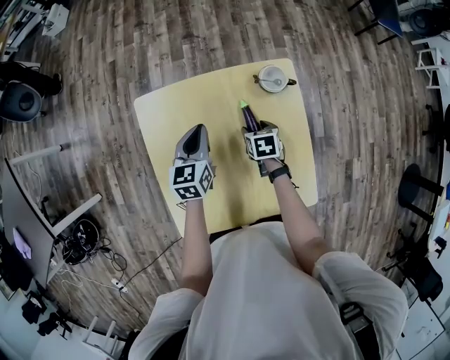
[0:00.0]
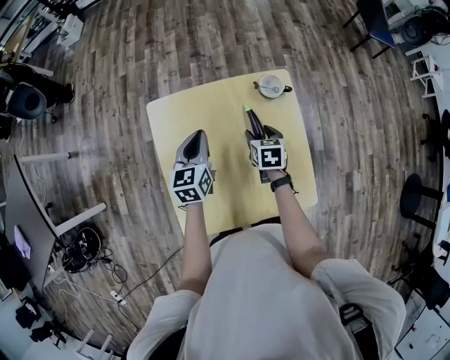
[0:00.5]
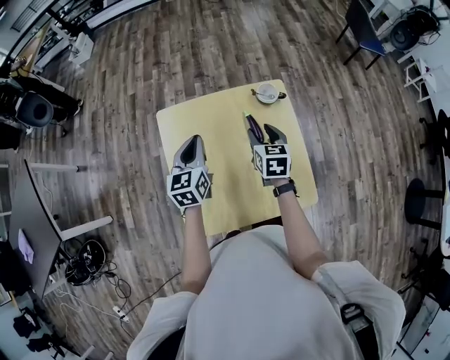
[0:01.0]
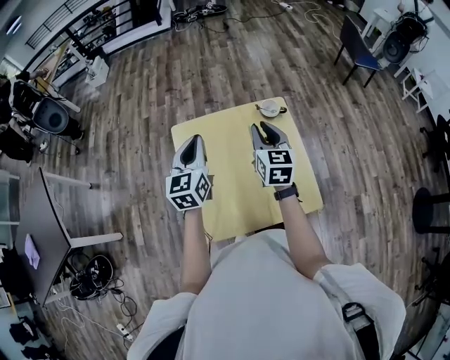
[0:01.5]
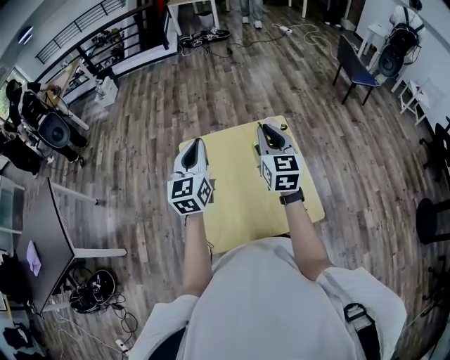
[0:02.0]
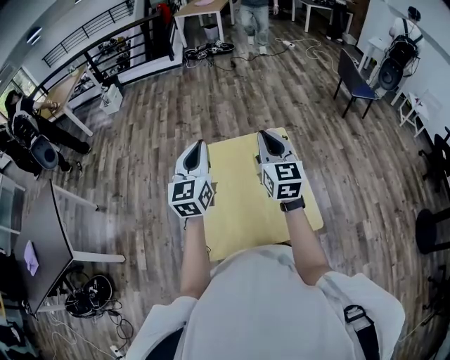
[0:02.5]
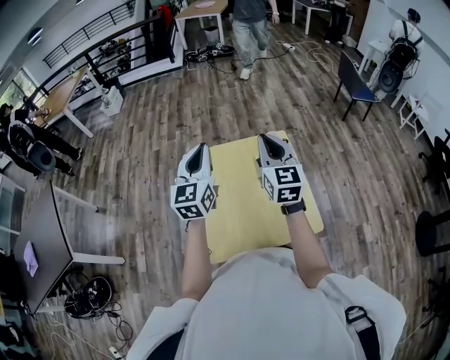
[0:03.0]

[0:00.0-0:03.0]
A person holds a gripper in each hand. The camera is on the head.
0:00.0 to 0:01.5: The right gripper shifts about 35 cm upward, angles its fingers upward, by about 50 degrees, and closes up. Meanwhile the left gripper moves upward and backward, about 25 cm, and swivels approximately 20 degrees.
0:01.5 to 0:03.0: Both grippers move upward, approximately 10 cm.

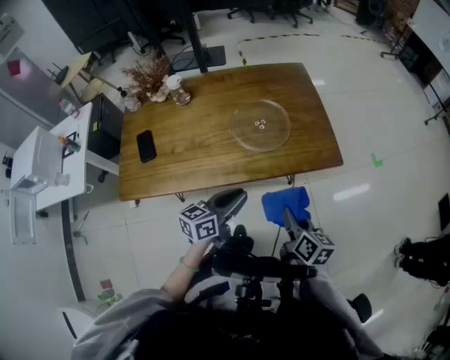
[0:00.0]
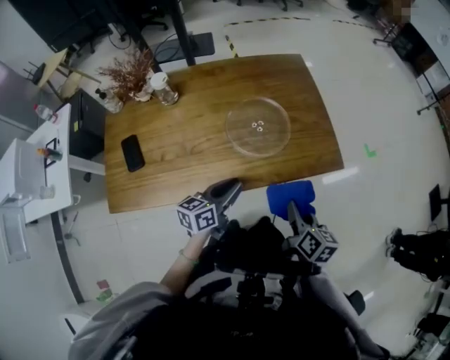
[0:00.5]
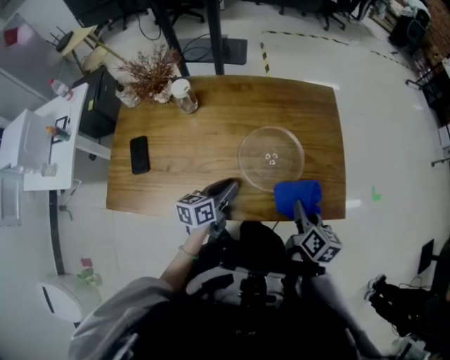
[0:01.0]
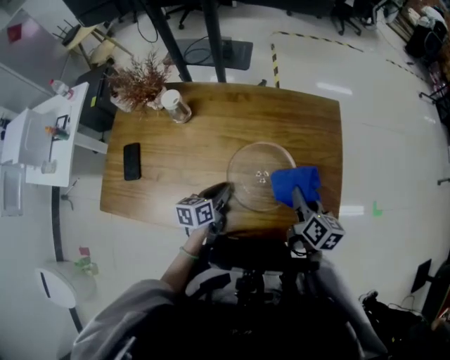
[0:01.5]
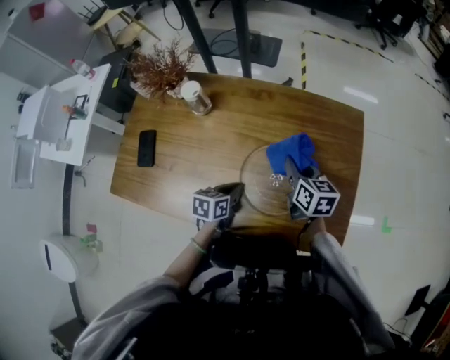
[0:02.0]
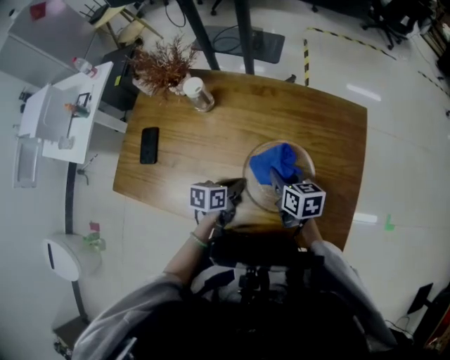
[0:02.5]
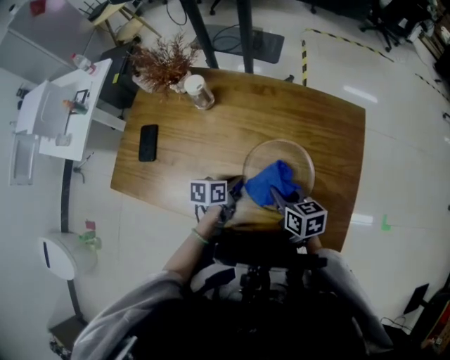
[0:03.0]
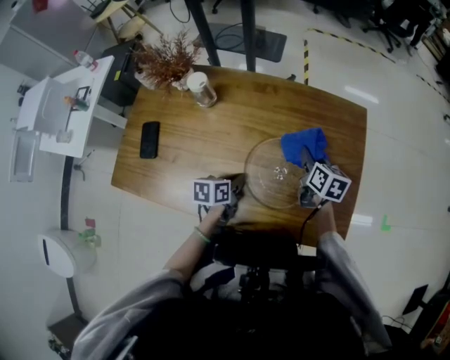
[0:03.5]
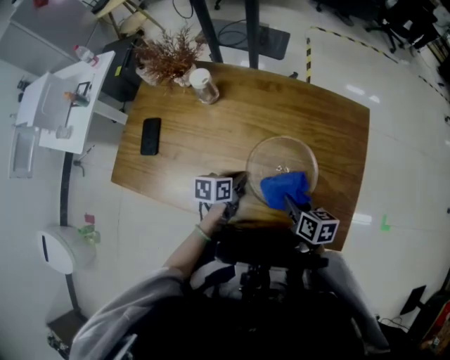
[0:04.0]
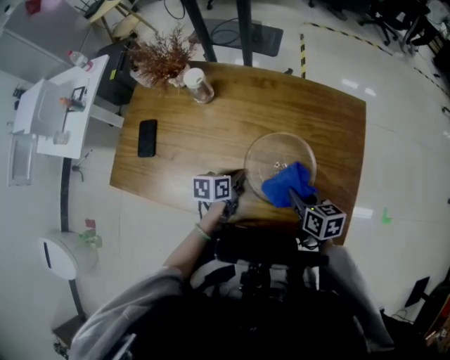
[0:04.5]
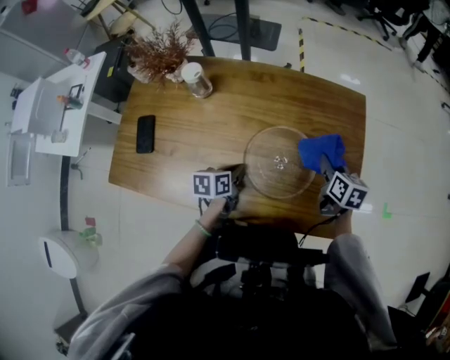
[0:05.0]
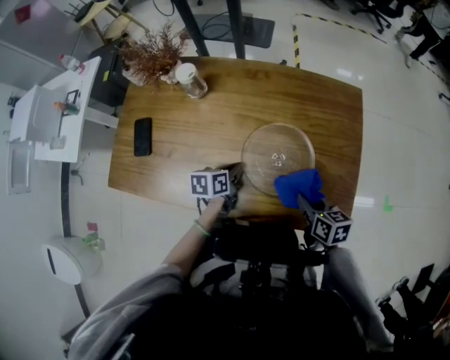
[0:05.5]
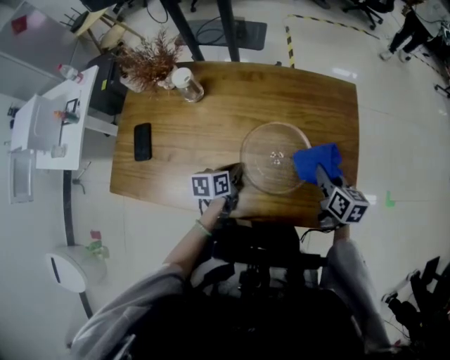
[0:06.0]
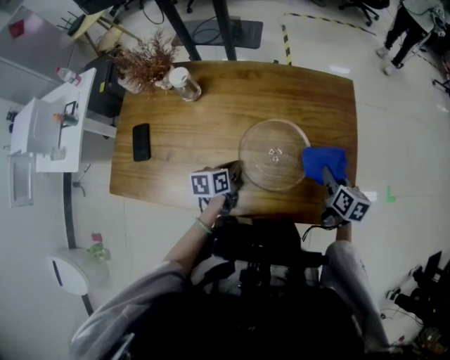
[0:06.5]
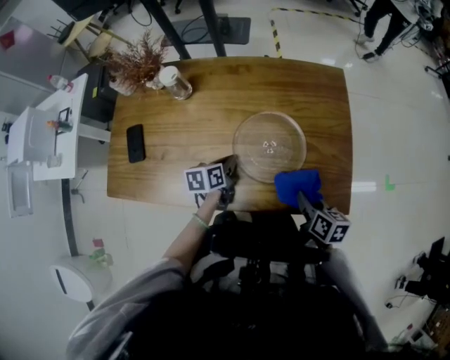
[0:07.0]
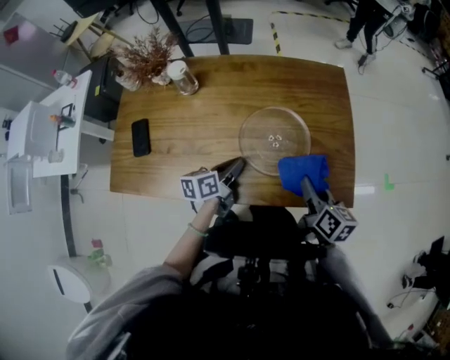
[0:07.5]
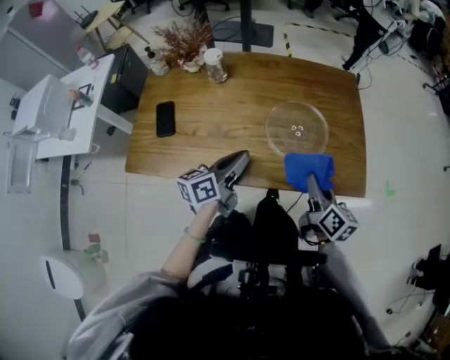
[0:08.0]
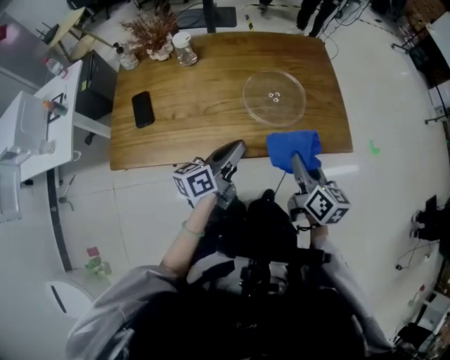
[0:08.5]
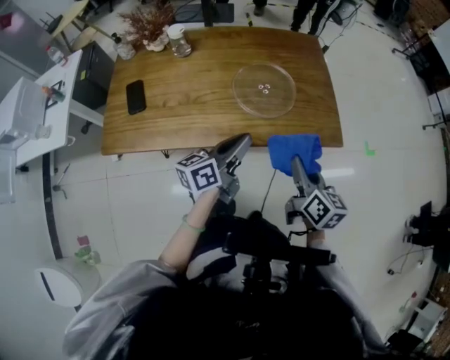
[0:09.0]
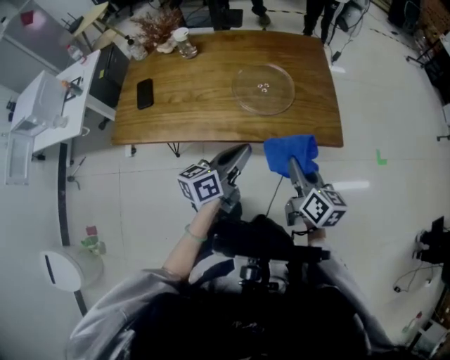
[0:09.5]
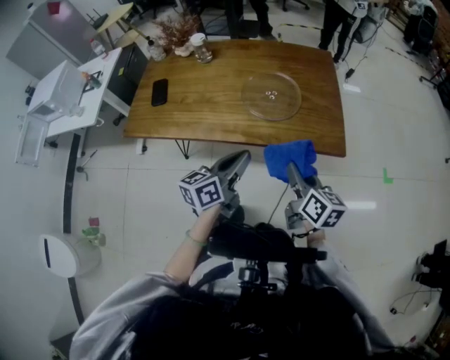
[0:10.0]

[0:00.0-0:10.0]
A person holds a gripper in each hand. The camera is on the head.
0:00.0 to 0:02.0: The left gripper heads forward and downward, covering roughly 30 cm, and angles its fingers downward, by approximately 30 degrees, while the right gripper is displaced forward by some 40 cm, and swivels some 30 degrees.
0:02.0 to 0:04.0: The right gripper moves forward and backward over some 15 cm, changing direction 2 times.
0:04.0 to 0:06.0: The right gripper swings forward and backward, about 15 cm each way, with 2 reversals, and changes its angle by some 20 degrees.
0:06.0 to 0:08.0: The left gripper moves upward and backward, roughly 20 cm, and points its fingers approximately 40 degrees further upward, while the right gripper shifts about 20 cm backward and to the left.
0:08.0 to 0:10.0: The grippers both shift backward and to the right by some 20 cm.

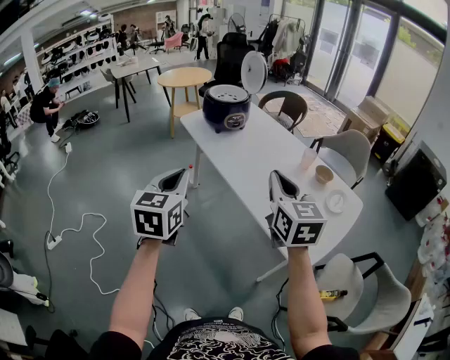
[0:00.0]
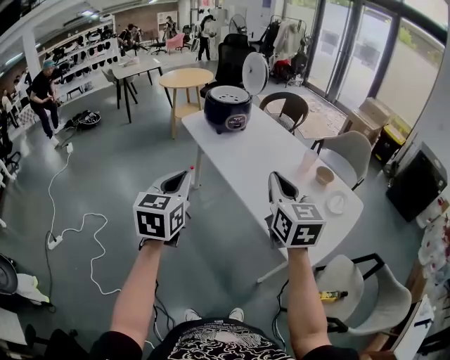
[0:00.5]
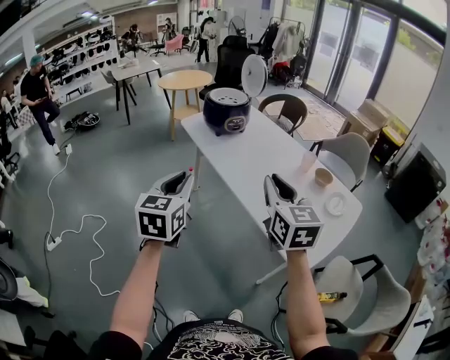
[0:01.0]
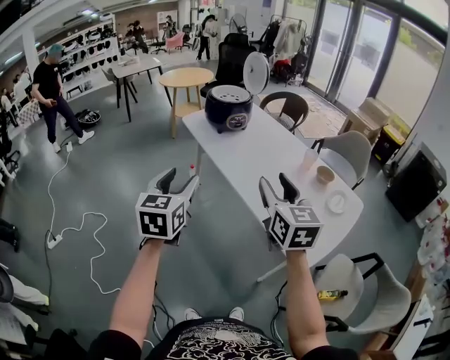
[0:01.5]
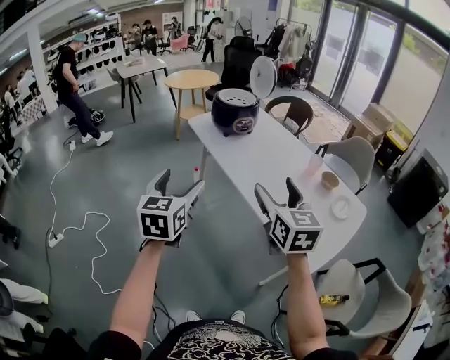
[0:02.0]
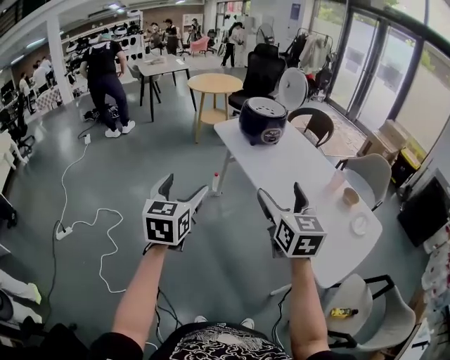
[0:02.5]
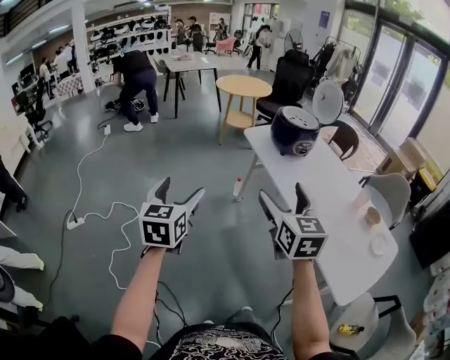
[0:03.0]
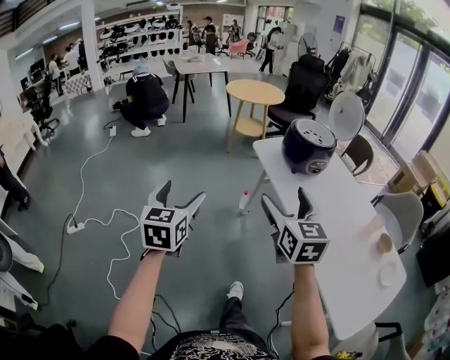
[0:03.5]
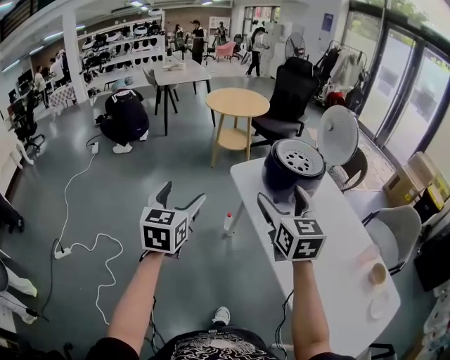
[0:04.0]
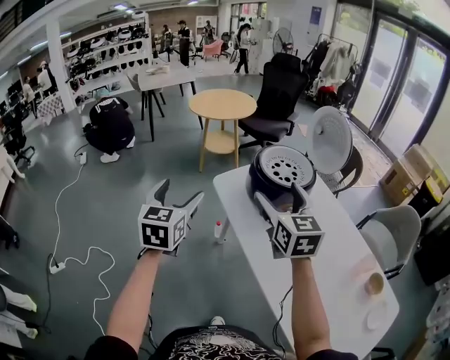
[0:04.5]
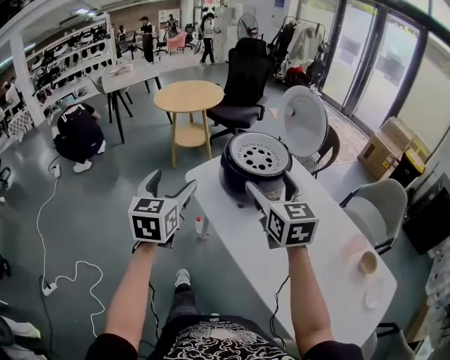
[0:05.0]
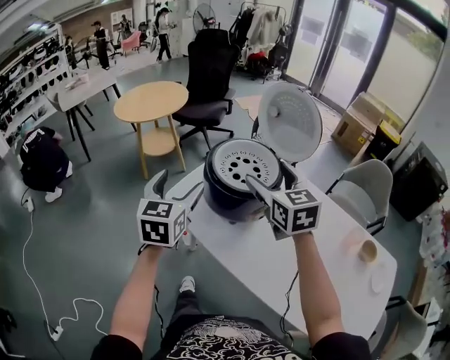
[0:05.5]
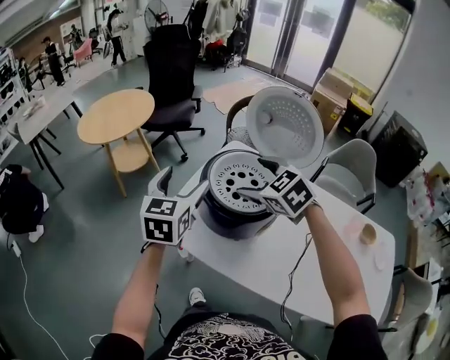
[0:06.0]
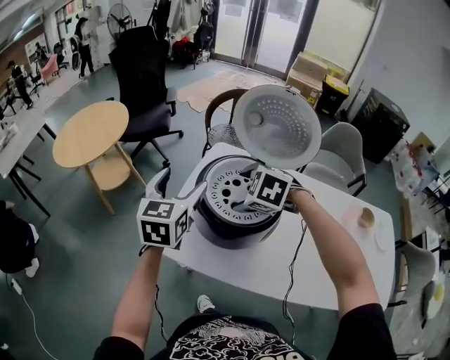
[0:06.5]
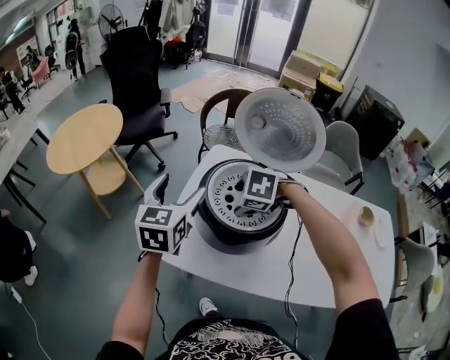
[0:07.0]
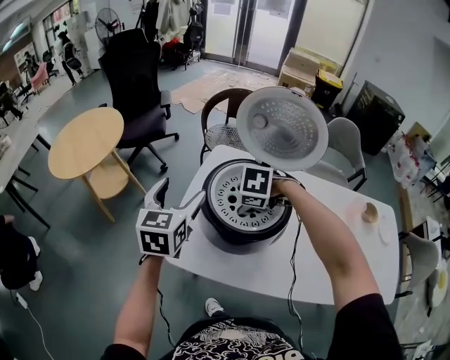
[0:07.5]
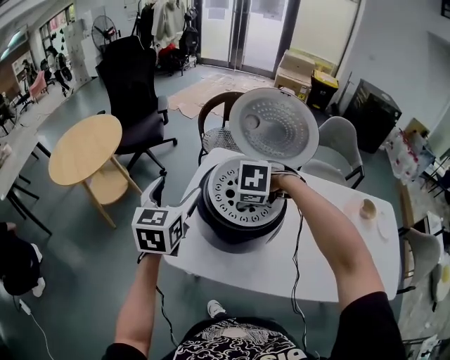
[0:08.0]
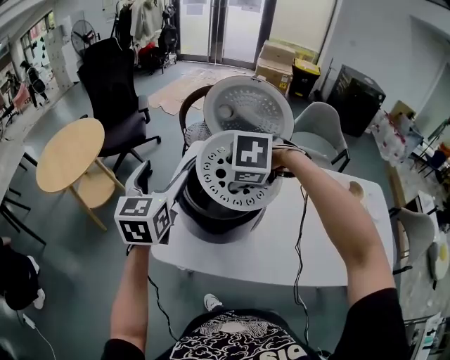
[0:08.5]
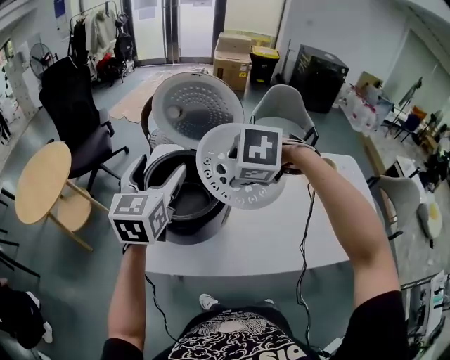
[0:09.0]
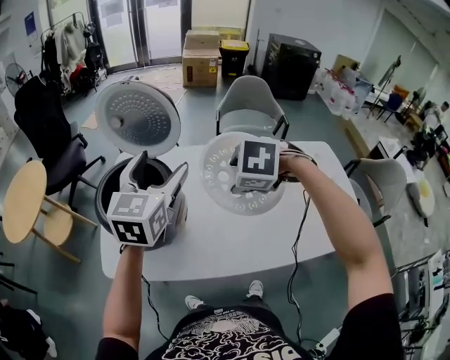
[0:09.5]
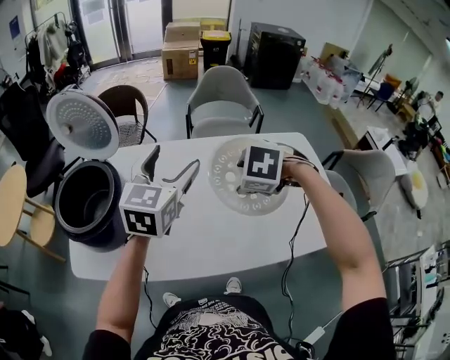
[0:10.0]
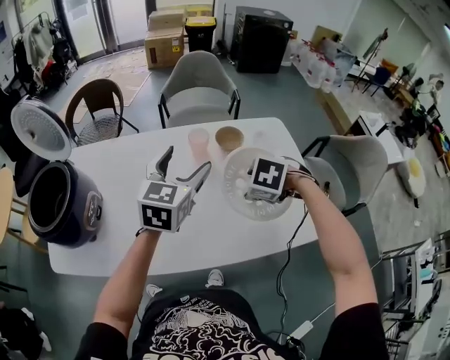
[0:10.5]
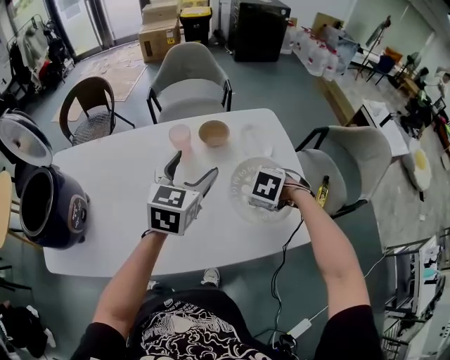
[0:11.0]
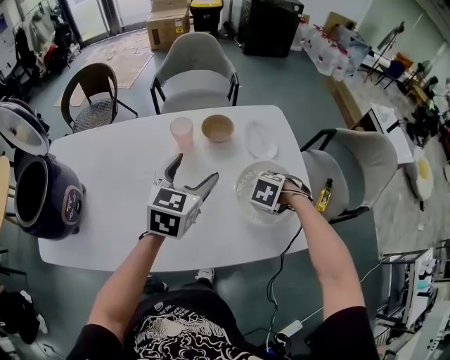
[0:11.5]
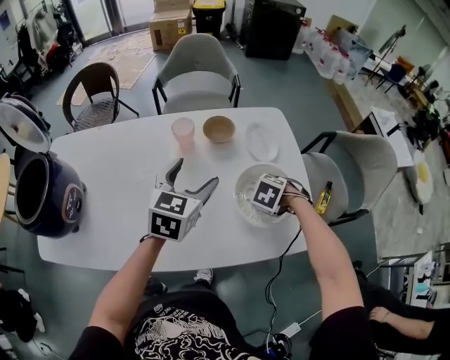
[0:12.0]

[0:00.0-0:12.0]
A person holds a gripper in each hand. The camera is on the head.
0:00.0 to 0:02.0: The right gripper opens up; the left gripper opens its fingers.
0:02.0 to 0:04.0: Both grippers are carried forward, approximately 60 cm.
0:04.0 to 0:06.0: The pair of grippers is taken approximately 60 cm. The left gripper swivels some 40 degrees. Meanwhile the right gripper rotates roughly 30 degrees.
0:06.0 to 0:08.0: The right gripper shifts about 10 cm downward, and tilts its fingers roughly 40 degrees downward; the left gripper shifts by about 10 cm.
0:08.0 to 0:10.0: The two grippers travel together, roughly 60 cm. The right gripper rotates approximately 30 degrees; the left gripper swivels roughly 30 degrees.
0:10.0 to 0:12.0: The left gripper shifts by approximately 40 cm; the right gripper changes place by roughly 50 cm.

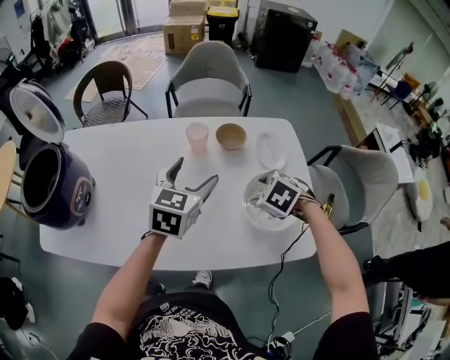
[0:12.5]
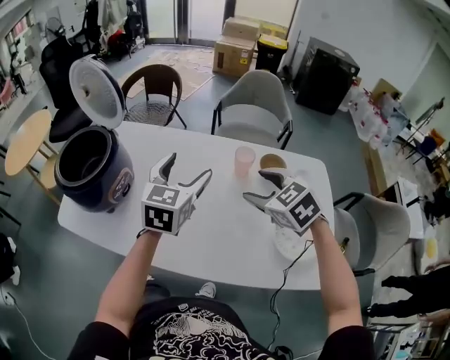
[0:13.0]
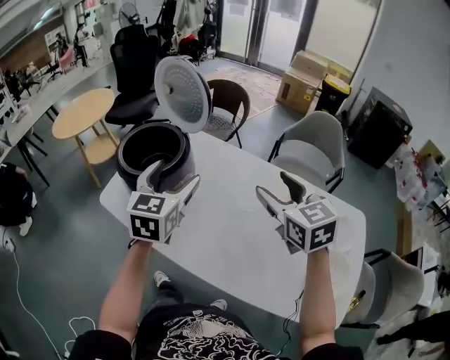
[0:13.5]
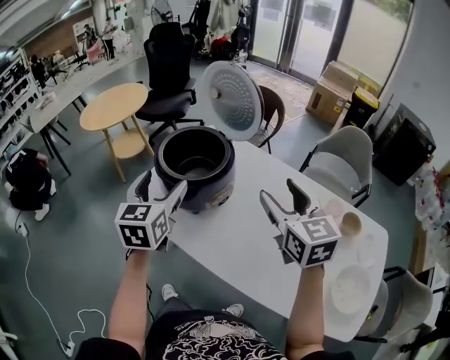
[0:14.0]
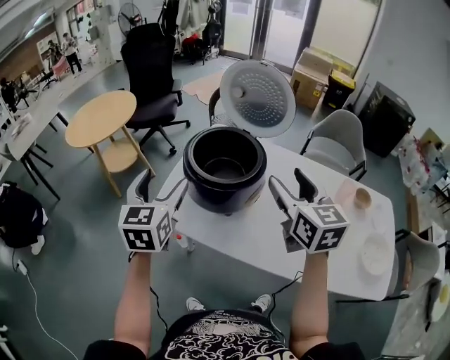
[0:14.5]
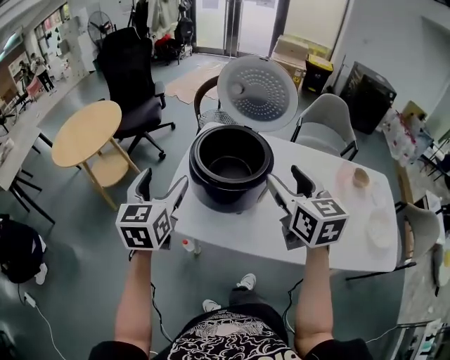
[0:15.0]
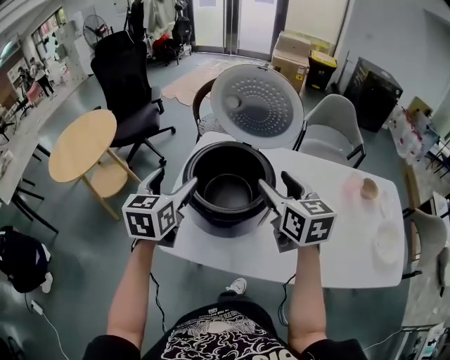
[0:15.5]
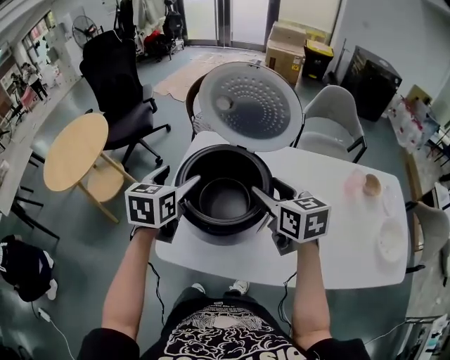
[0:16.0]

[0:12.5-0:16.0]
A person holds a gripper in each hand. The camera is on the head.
0:12.5 to 0:14.5: Both grippers are carried roughly 80 cm. The left gripper changes its angle by approximately 50 degrees. Meanwhile the right gripper angles its fingers upward, by some 60 degrees.
0:14.5 to 0:16.0: The left gripper moves forward, some 25 cm, and changes its angle by about 30 degrees; the right gripper is displaced forward and downward by some 25 cm.
